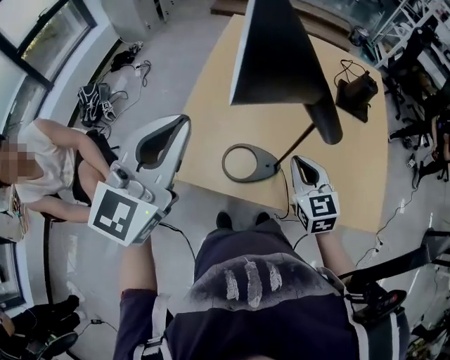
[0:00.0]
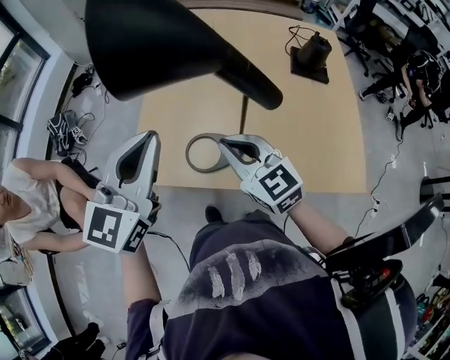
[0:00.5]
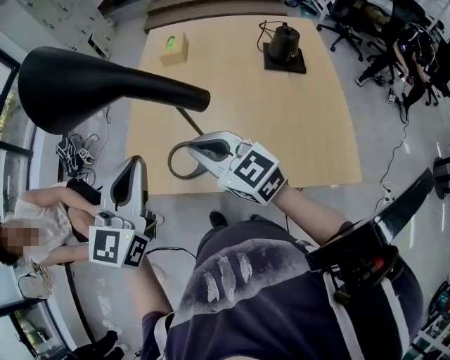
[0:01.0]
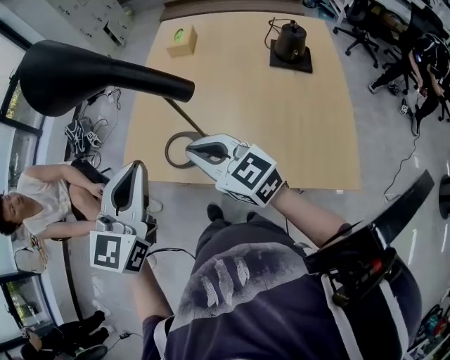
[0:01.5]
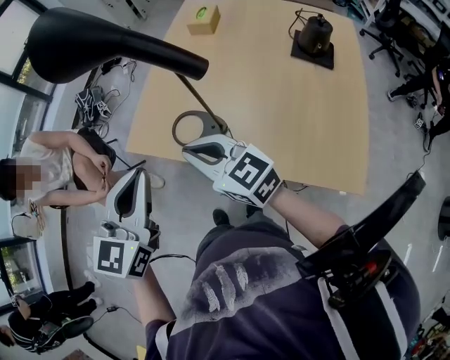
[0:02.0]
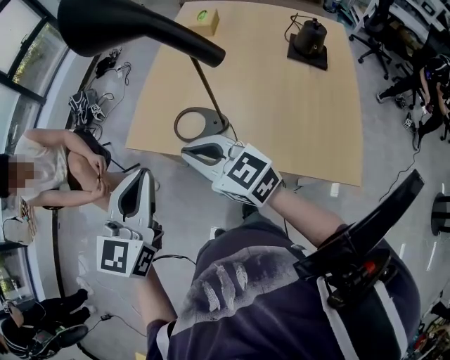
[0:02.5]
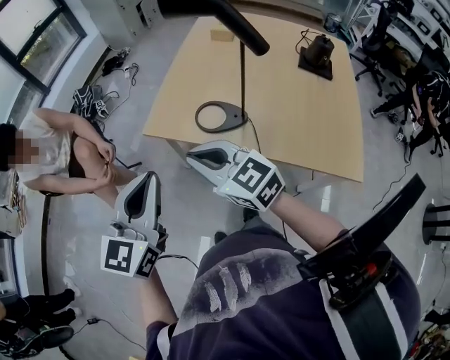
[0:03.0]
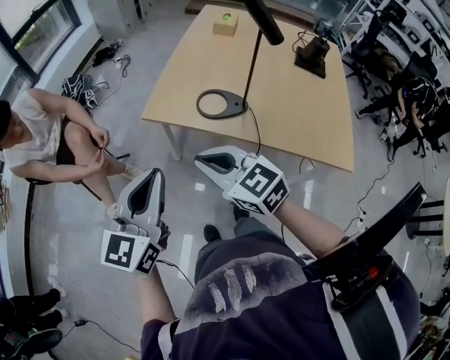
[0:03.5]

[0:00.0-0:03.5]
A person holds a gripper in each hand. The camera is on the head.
0:00.0 to 0:02.0: The right gripper moves approximately 15 cm, and rotates approximately 50 degrees, while the left gripper ends up roughly 25 cm from where it was, and swivels approximately 20 degrees.
0:02.0 to 0:03.5: The left gripper shifts about 20 cm to the left. The right gripper goes roughly 25 cm to the left and backward.

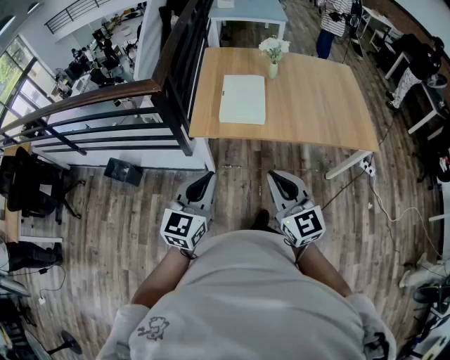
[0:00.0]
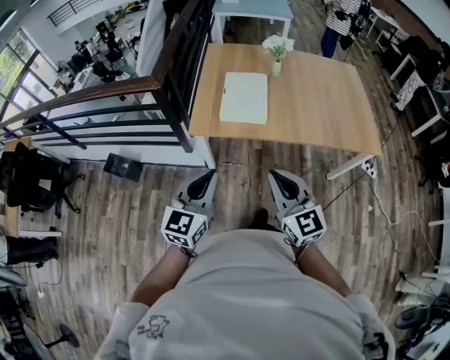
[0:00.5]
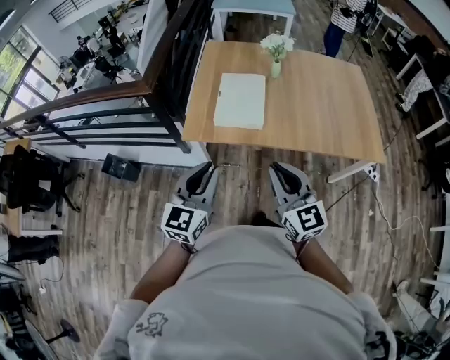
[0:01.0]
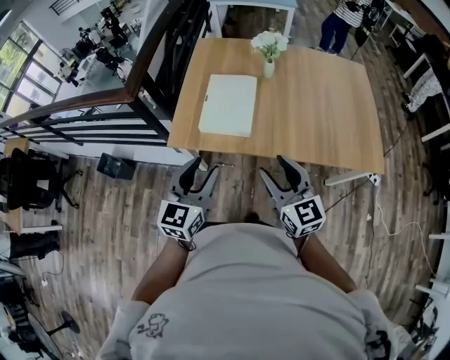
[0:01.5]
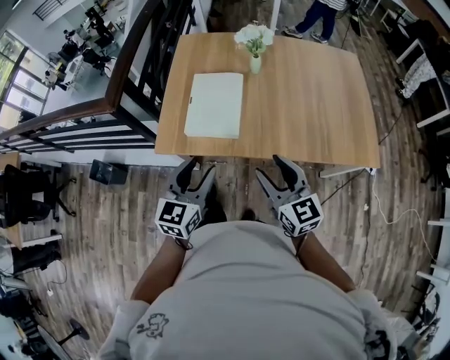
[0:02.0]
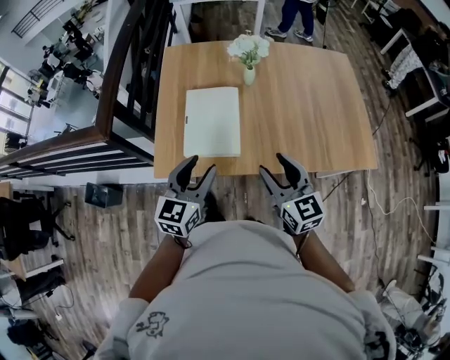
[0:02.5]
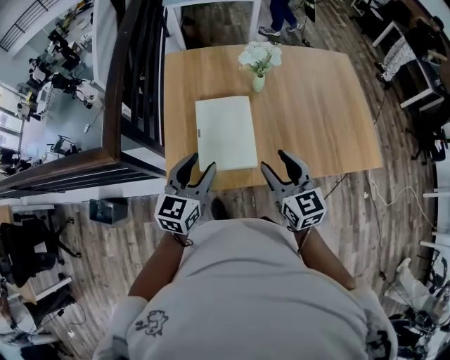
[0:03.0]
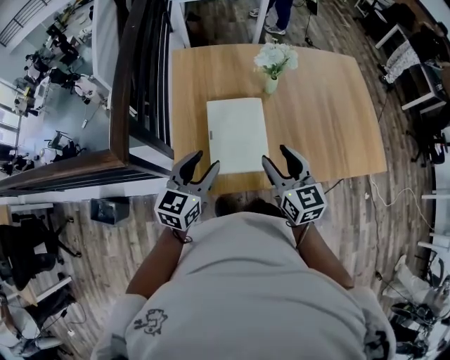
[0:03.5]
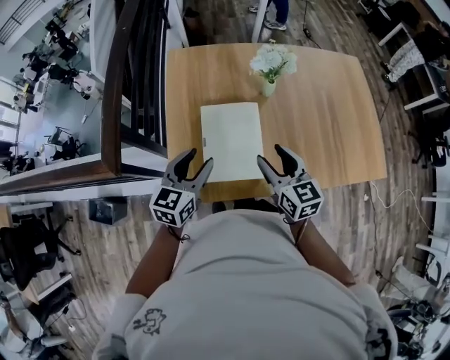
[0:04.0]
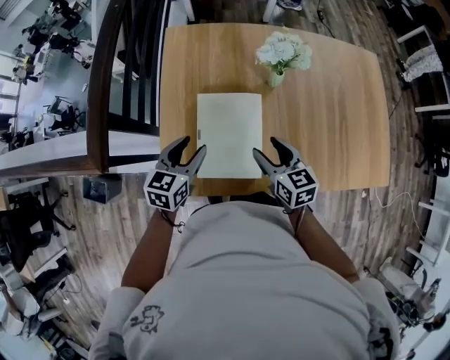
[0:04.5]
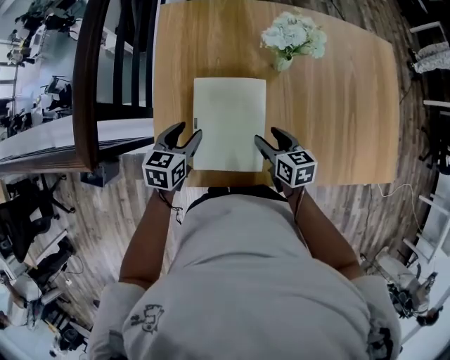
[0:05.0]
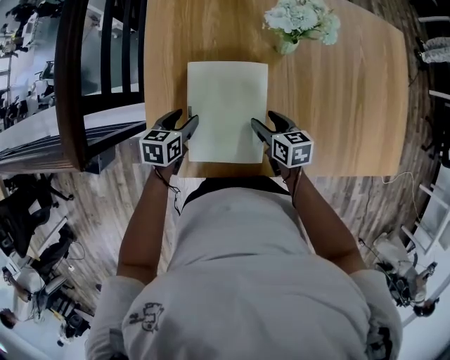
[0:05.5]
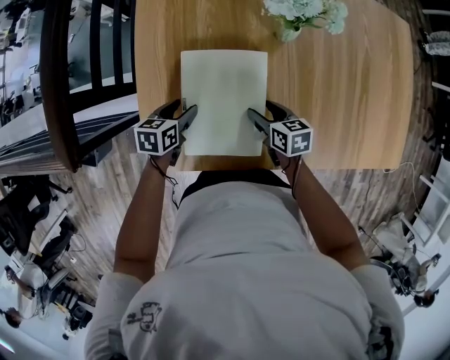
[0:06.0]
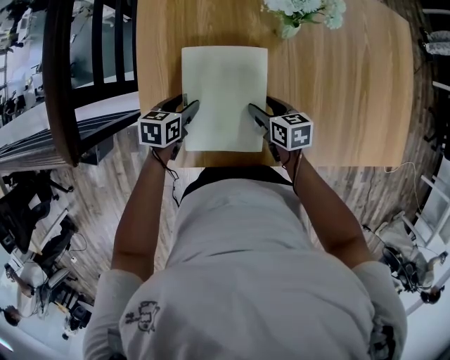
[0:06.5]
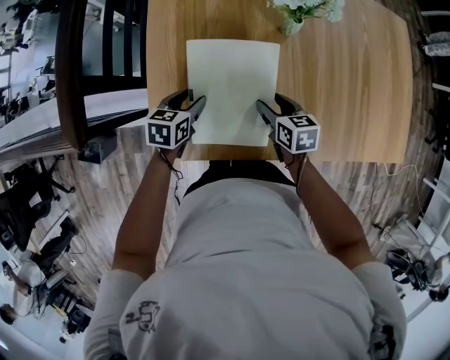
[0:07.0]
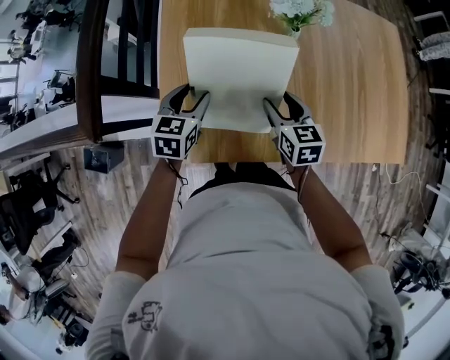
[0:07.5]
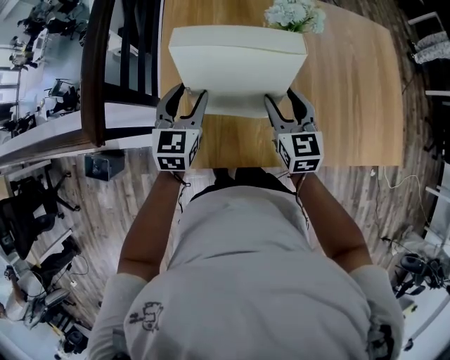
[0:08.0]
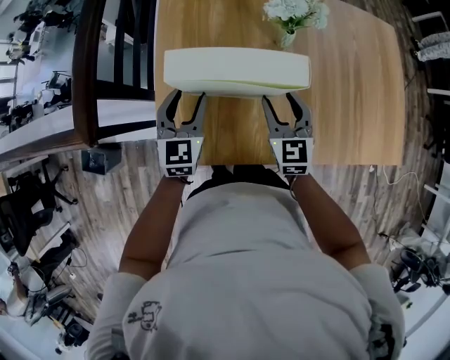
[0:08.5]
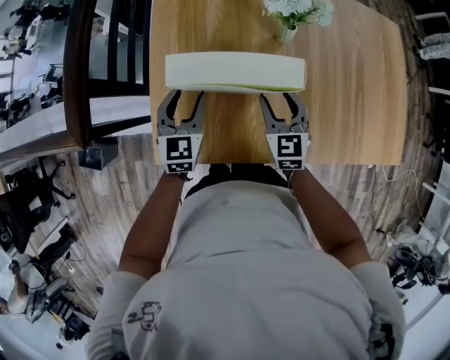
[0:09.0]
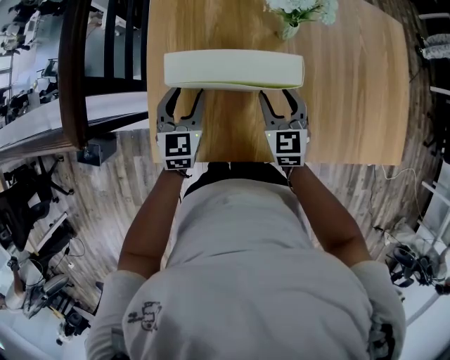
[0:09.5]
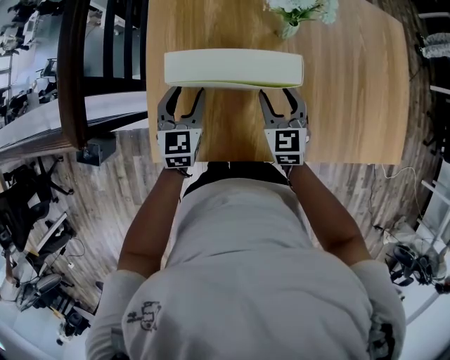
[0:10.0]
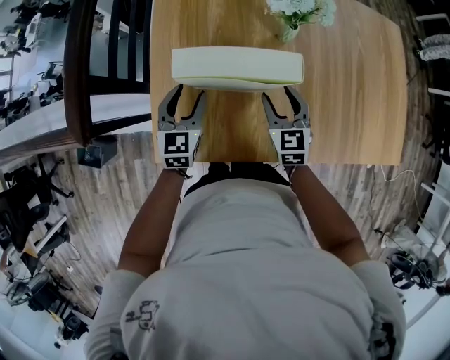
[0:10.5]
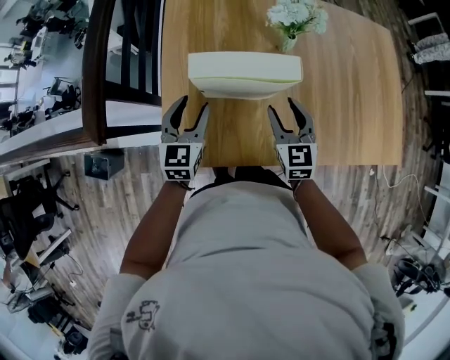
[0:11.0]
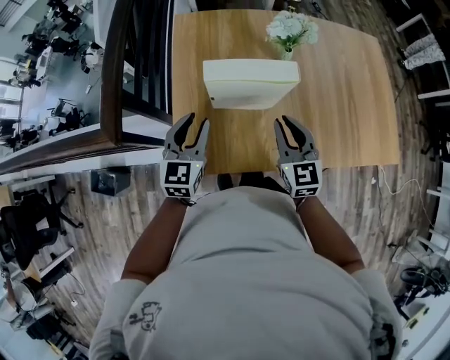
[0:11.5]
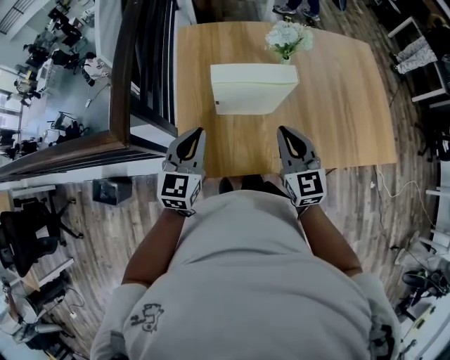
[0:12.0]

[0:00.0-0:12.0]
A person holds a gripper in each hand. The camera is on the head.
0:00.0 to 0:02.0: Both grippers move forward and to the right, about 25 cm. The left gripper opens its fingers. The right gripper opens its fingers.
0:02.0 to 0:04.0: The two grippers go approximately 25 cm forward and to the left.
0:04.0 to 0:06.0: The grippers both shift downward by approximately 25 cm. The right gripper changes its angle by approximately 40 degrees, while the left gripper rotates about 40 degrees.
0:06.0 to 0:08.0: Both grippers move upward, approximately 20 cm. The left gripper rotates some 40 degrees. The right gripper changes its angle by some 40 degrees.
0:08.0 to 0:10.0: The two grippers go roughly 10 cm downward.
0:10.0 to 0:12.0: Both grippers move upward and backward, about 20 cm. The right gripper closes up. The left gripper closes up.

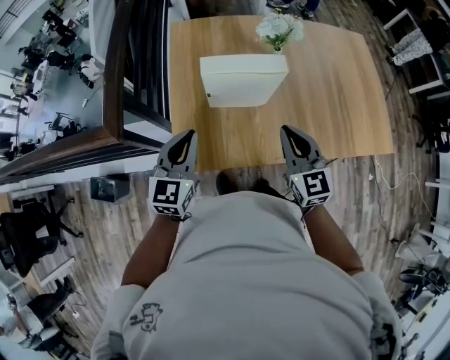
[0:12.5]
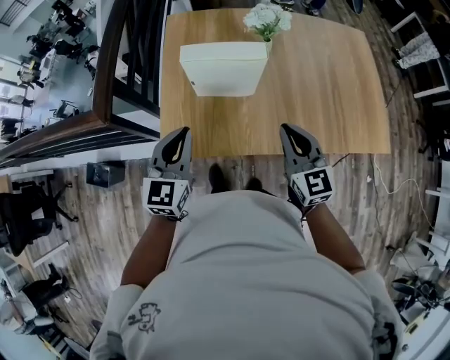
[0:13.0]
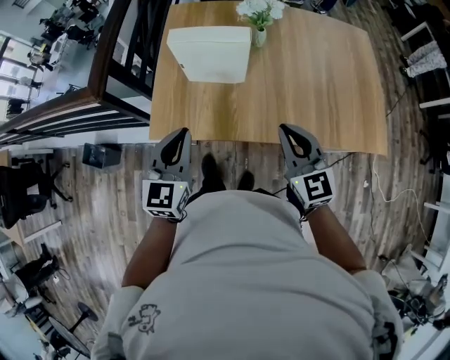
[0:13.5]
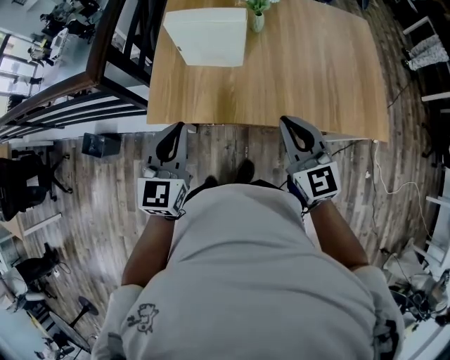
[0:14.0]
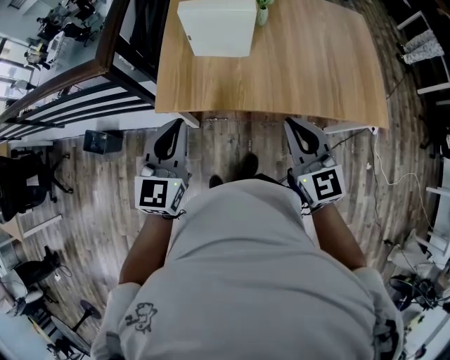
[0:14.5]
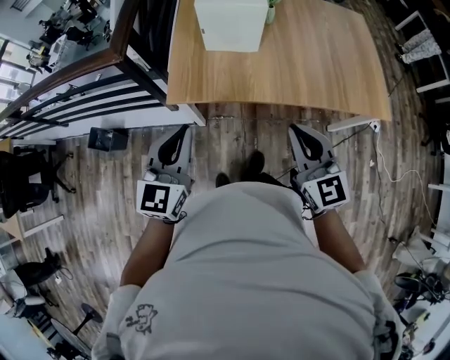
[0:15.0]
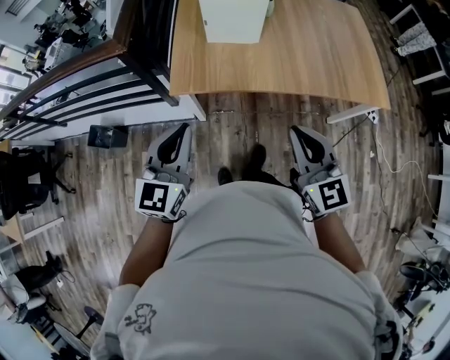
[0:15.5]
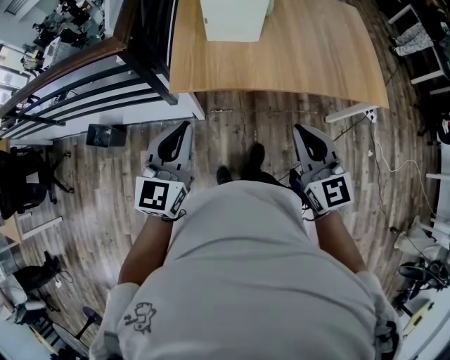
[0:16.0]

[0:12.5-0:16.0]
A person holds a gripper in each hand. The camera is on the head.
0:12.5 to 0:14.5: Both grippers travel together backward, roughly 20 cm.
0:14.5 to 0:16.0: Both grippers move backward and to the left, about 15 cm.

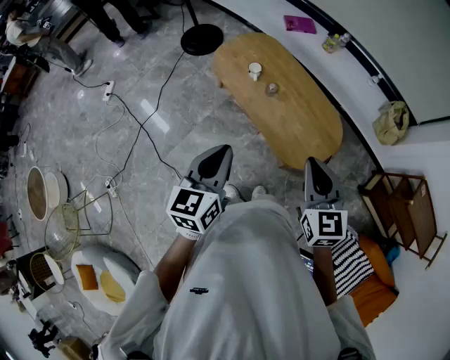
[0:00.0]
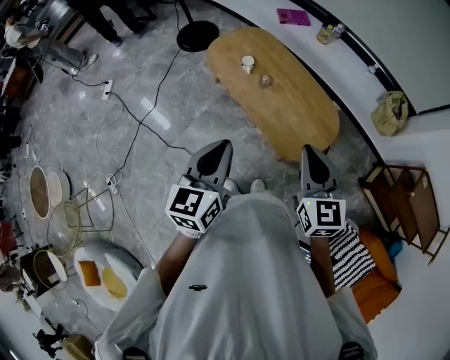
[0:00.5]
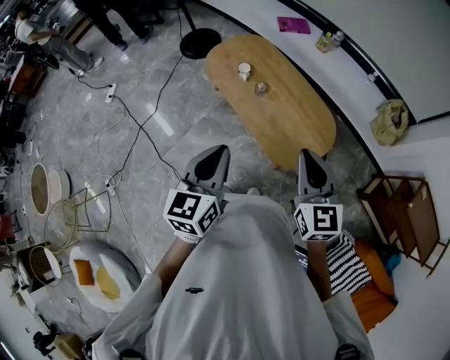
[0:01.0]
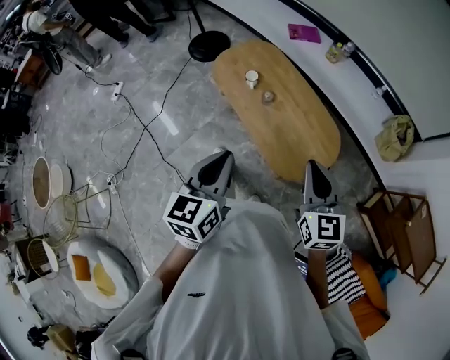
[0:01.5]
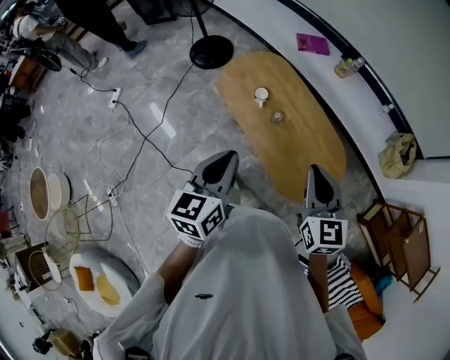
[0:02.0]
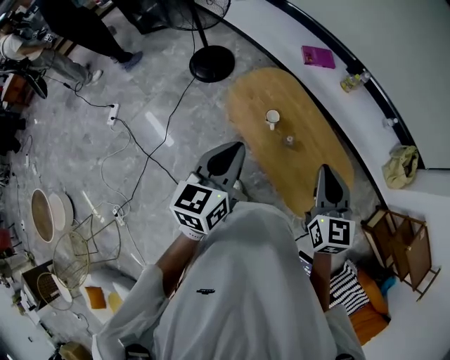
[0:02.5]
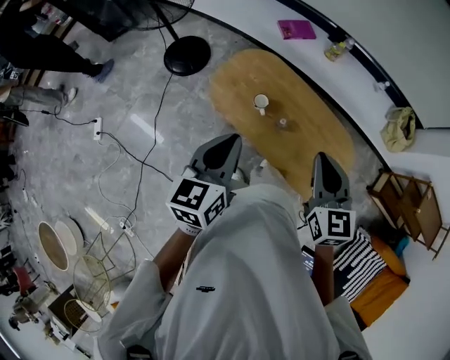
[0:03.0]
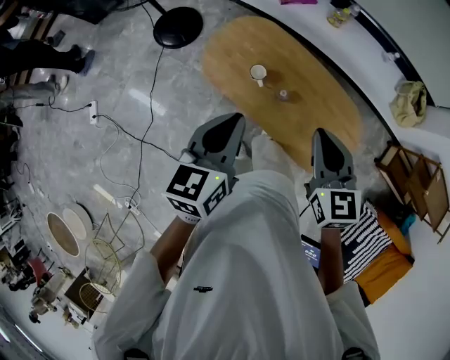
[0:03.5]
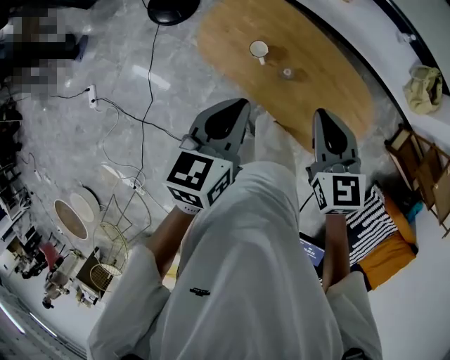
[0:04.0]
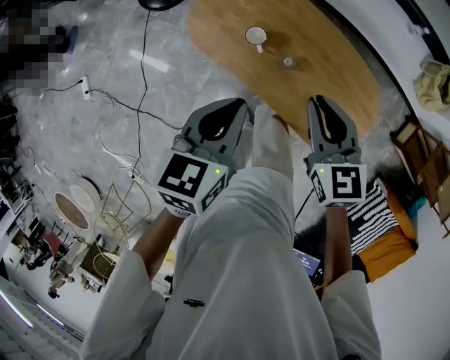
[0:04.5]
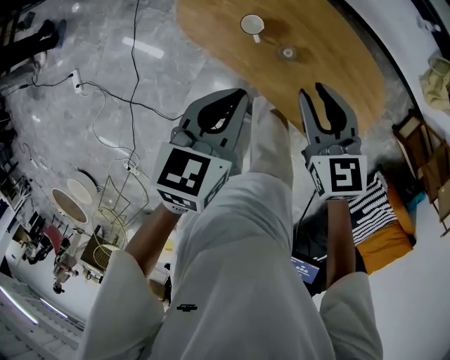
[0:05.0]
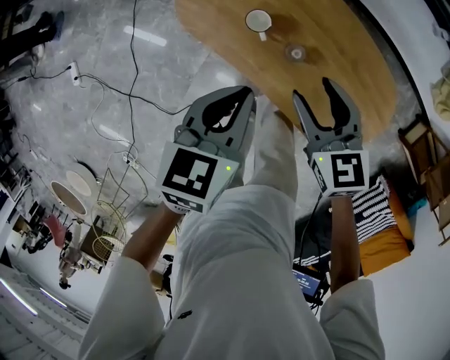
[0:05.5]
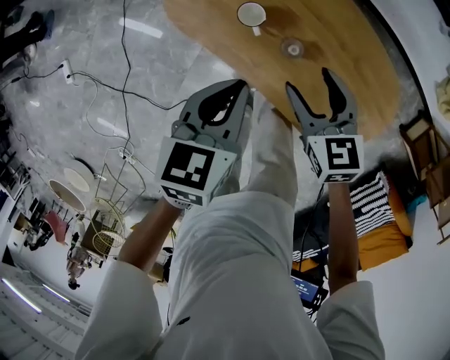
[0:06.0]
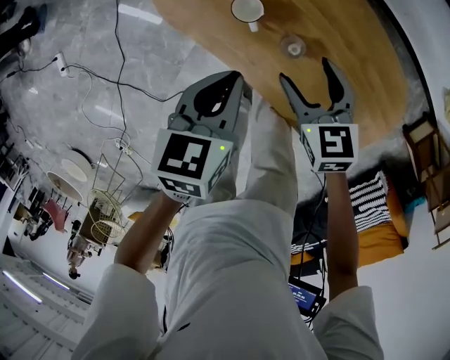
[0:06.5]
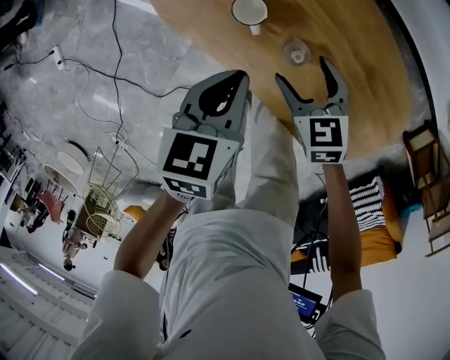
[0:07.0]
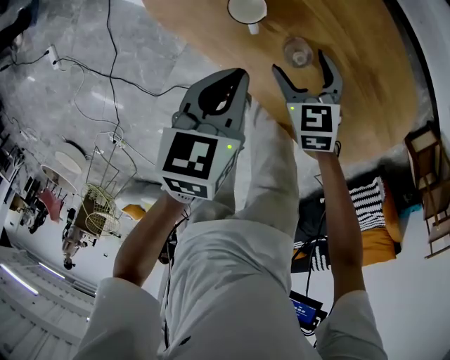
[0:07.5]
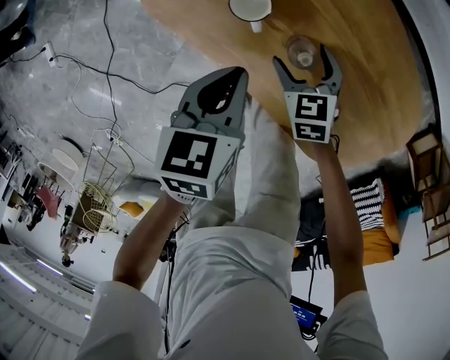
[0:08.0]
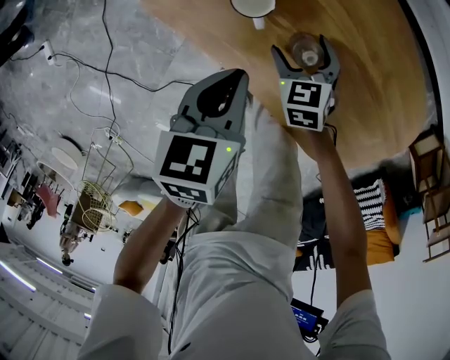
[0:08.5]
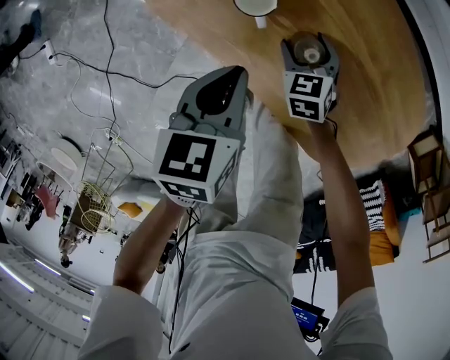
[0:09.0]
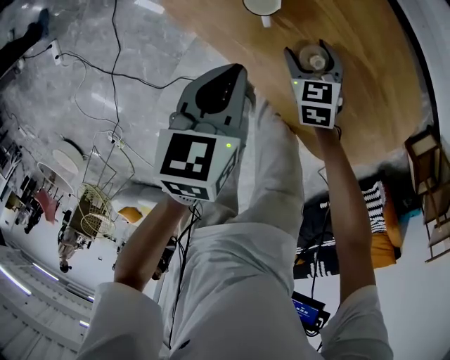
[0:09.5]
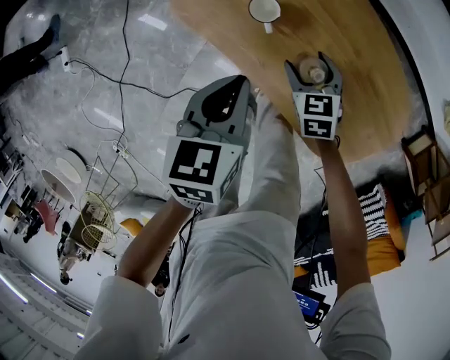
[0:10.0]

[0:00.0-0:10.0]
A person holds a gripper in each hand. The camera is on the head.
0:00.0 to 0:02.0: Both grippers move forward, about 15 cm.
0:02.0 to 0:04.0: The left gripper goes some 20 cm forward, and changes its angle by approximately 20 degrees. Meanwhile the right gripper goes about 20 cm forward, to the left and downward.
0:04.0 to 0:06.0: Both grippers move downward, approximately 20 cm. The right gripper opens its fingers.
0:06.0 to 0:08.0: Both grippers move downward, about 20 cm.
0:08.0 to 0:10.0: Both grippers move upward, approximately 10 cm.
